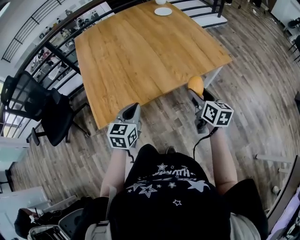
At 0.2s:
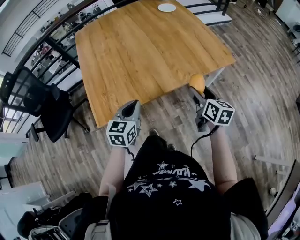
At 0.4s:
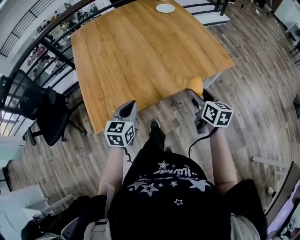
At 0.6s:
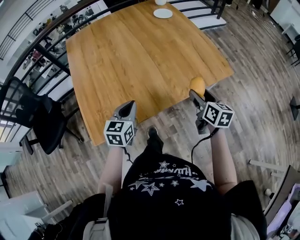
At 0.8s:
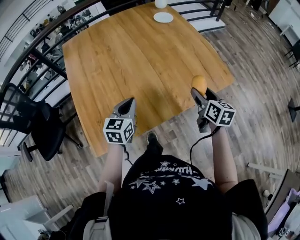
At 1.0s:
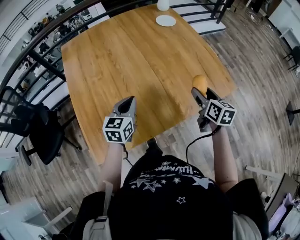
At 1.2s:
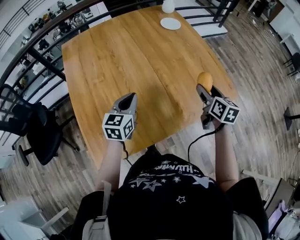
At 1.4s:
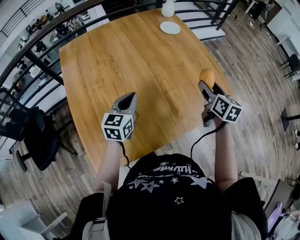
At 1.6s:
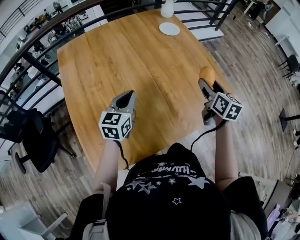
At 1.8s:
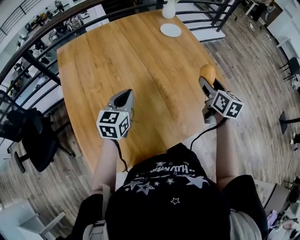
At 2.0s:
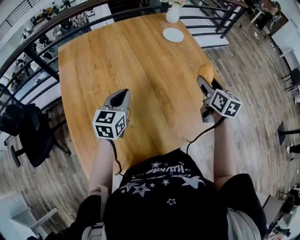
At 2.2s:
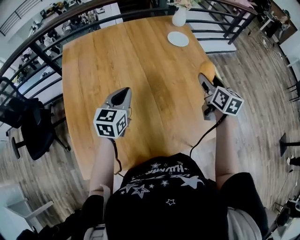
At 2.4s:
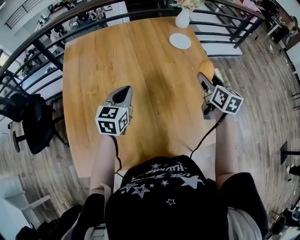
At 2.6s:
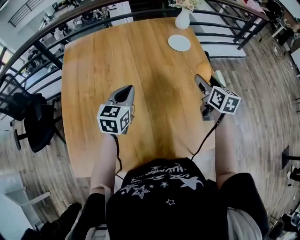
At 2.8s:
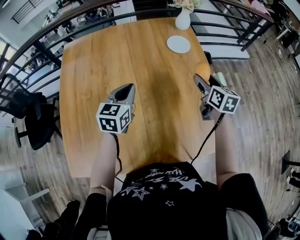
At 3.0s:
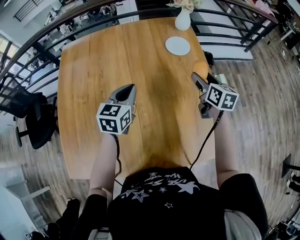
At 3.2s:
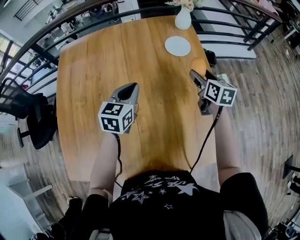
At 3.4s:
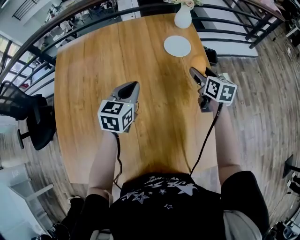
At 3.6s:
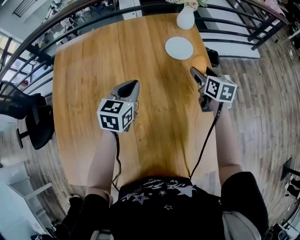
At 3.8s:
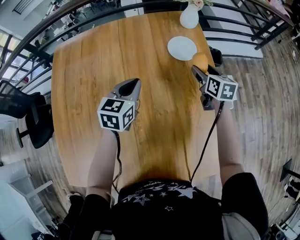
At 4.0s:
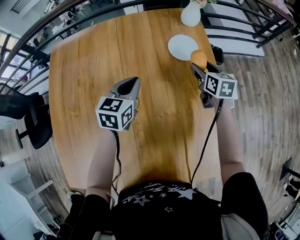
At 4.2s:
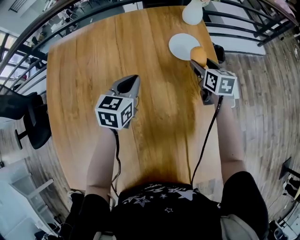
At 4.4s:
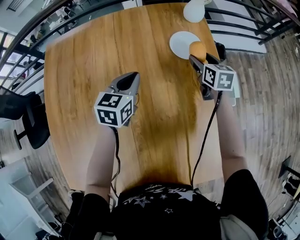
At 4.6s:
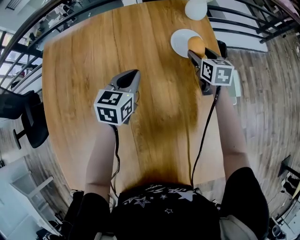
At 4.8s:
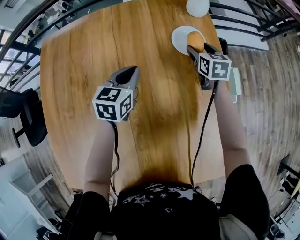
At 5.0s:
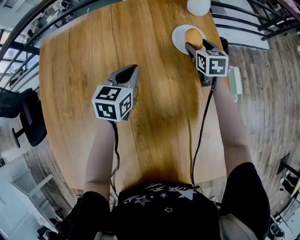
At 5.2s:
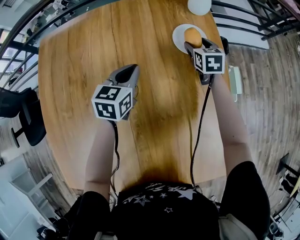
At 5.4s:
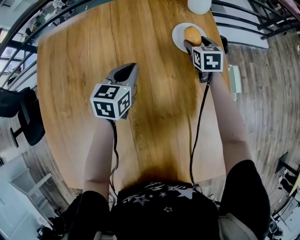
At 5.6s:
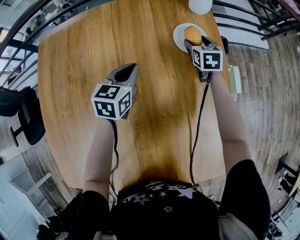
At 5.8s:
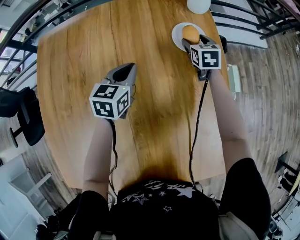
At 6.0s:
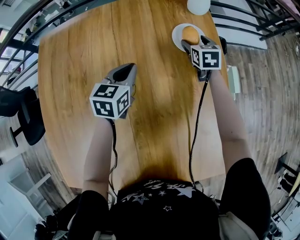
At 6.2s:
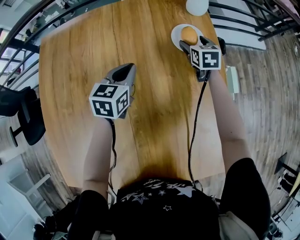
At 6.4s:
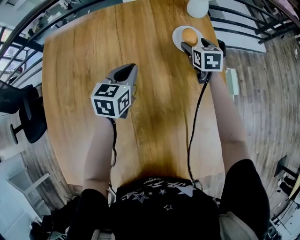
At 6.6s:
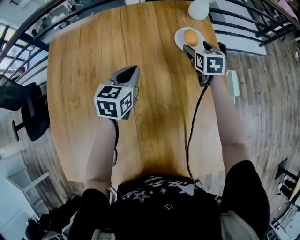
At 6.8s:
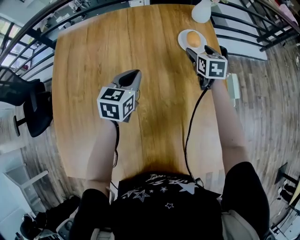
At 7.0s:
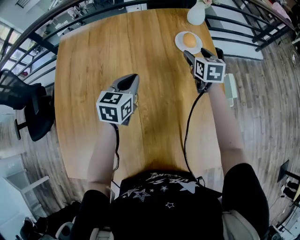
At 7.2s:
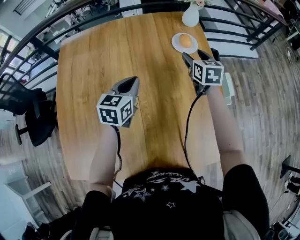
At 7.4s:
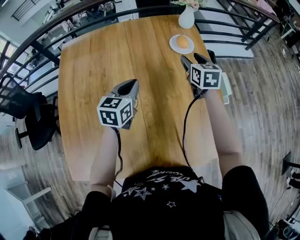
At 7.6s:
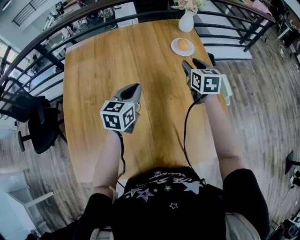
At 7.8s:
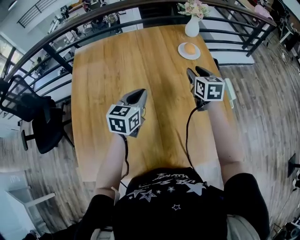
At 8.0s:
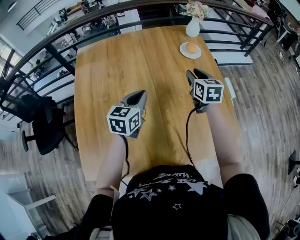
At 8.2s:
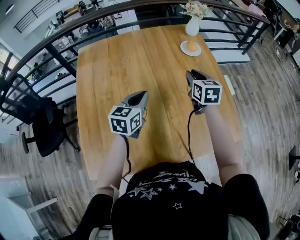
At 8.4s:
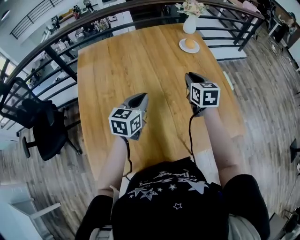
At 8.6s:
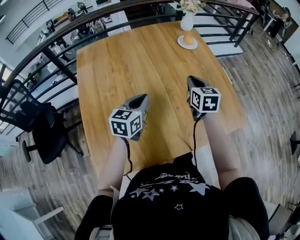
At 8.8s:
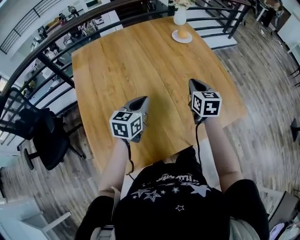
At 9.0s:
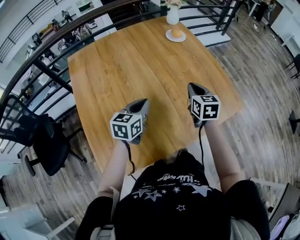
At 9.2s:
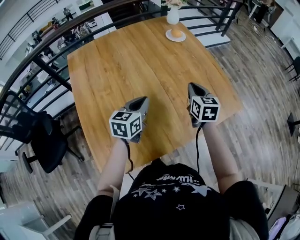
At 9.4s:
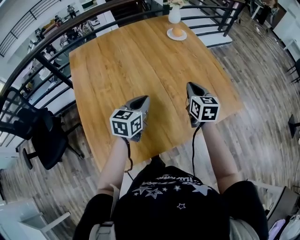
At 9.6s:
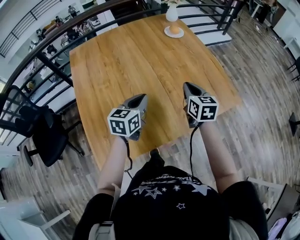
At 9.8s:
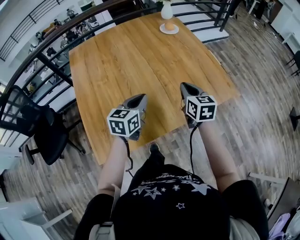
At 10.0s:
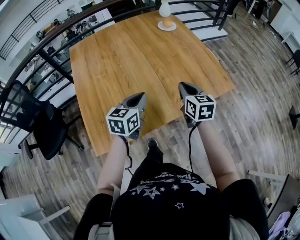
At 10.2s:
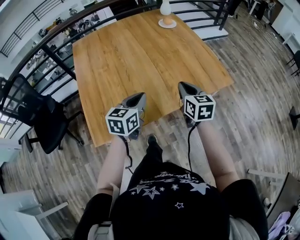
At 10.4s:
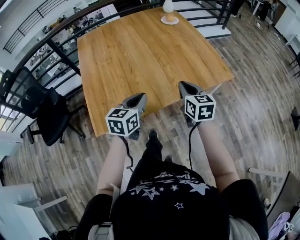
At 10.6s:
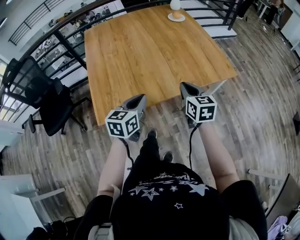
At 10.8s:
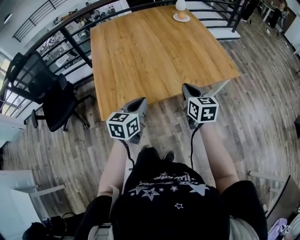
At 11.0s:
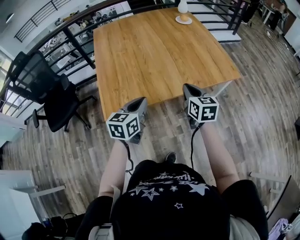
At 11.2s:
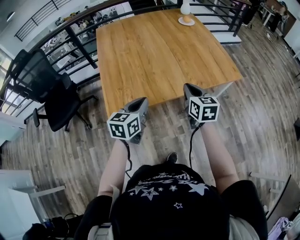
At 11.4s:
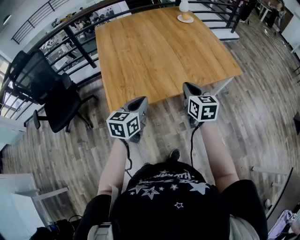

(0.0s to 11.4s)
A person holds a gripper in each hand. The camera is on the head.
0.0s - 1.4s: Both grippers travel together forward, roughly 30 cm.
1.4s - 2.8s: The right gripper moves forward, roughly 25 cm; the left gripper heads forward and to the right, covering about 20 cm.
2.8s - 4.2s: The right gripper is displaced forward and downward by approximately 25 cm. Meanwhile the left gripper moves forward, about 20 cm.
4.2s - 5.6s: The left gripper changes place by approximately 5 cm; the right gripper heads forward, covering some 10 cm.
5.6s - 7.2s: The two grippers go about 15 cm backward and upward.
7.2s - 8.6s: The left gripper moves backward and to the left, roughly 20 cm. The right gripper heads backward, covering some 25 cm, and closes.
8.6s - 10.0s: The right gripper shifts some 20 cm backward, while the left gripper moves backward and to the right, about 15 cm.
10.0s - 11.4s: Both grippers move backward and to the left, roughly 20 cm.

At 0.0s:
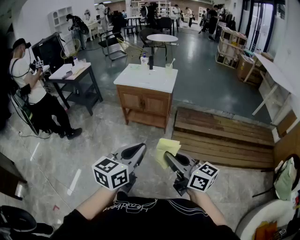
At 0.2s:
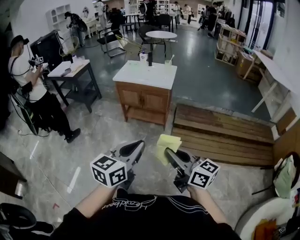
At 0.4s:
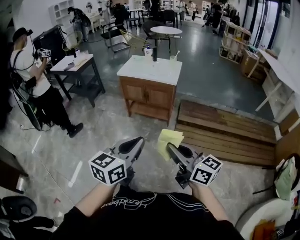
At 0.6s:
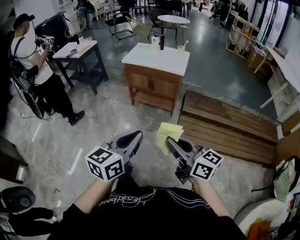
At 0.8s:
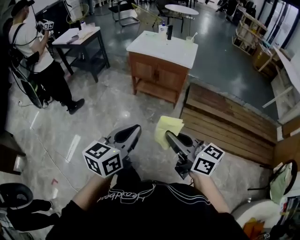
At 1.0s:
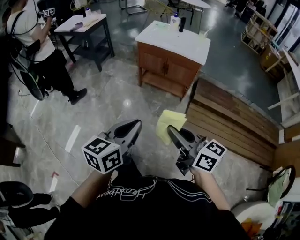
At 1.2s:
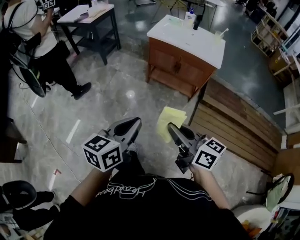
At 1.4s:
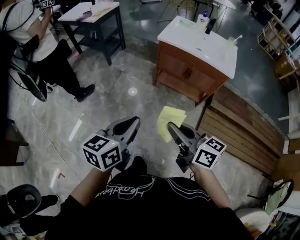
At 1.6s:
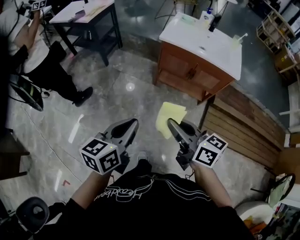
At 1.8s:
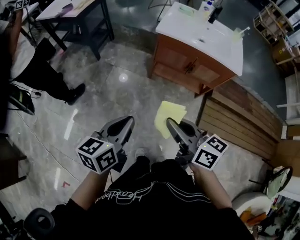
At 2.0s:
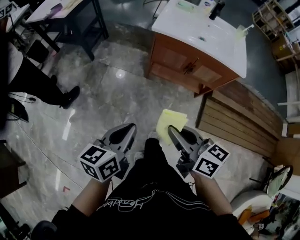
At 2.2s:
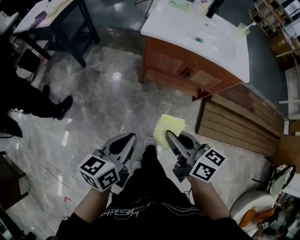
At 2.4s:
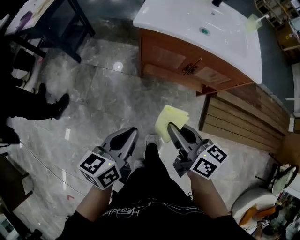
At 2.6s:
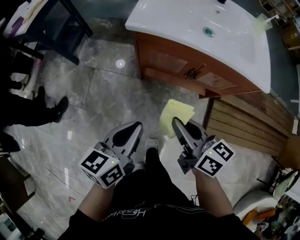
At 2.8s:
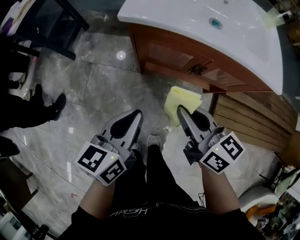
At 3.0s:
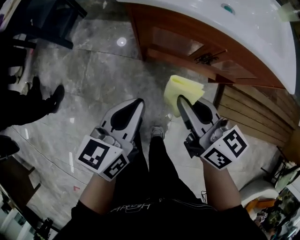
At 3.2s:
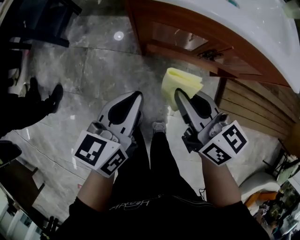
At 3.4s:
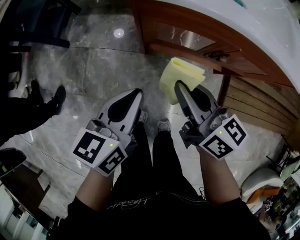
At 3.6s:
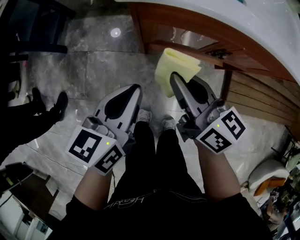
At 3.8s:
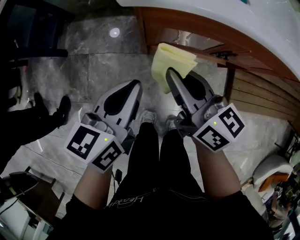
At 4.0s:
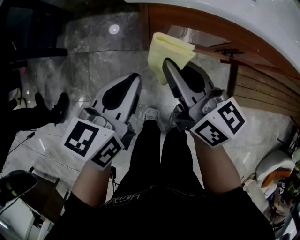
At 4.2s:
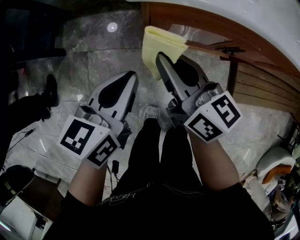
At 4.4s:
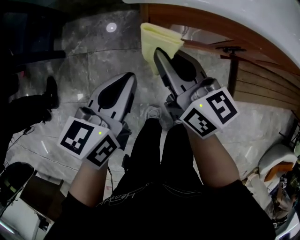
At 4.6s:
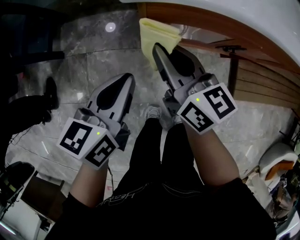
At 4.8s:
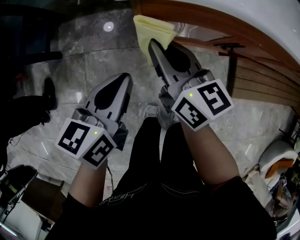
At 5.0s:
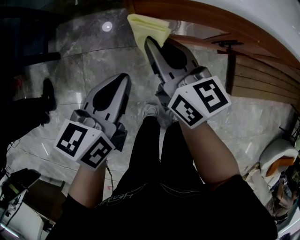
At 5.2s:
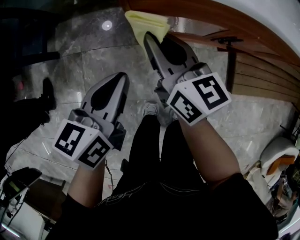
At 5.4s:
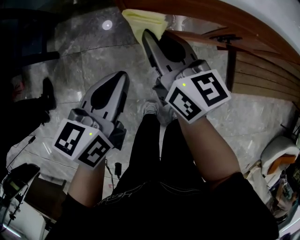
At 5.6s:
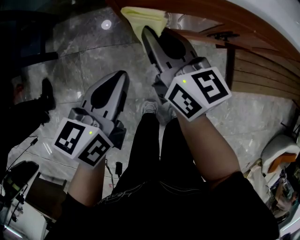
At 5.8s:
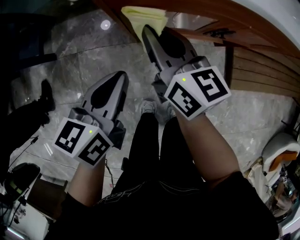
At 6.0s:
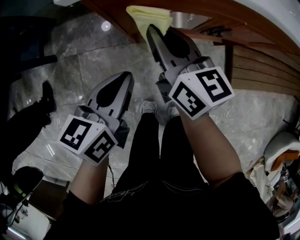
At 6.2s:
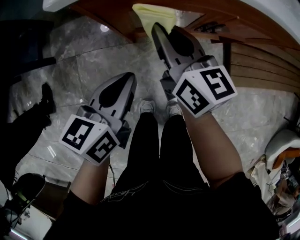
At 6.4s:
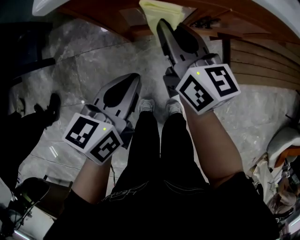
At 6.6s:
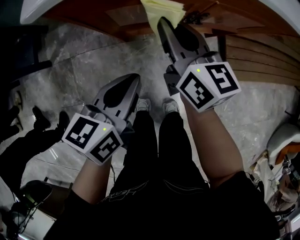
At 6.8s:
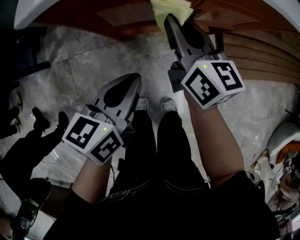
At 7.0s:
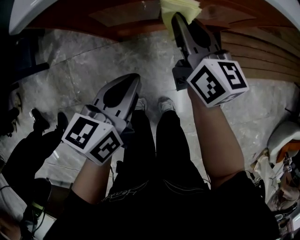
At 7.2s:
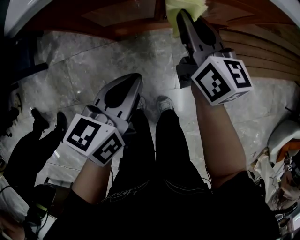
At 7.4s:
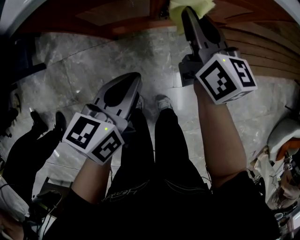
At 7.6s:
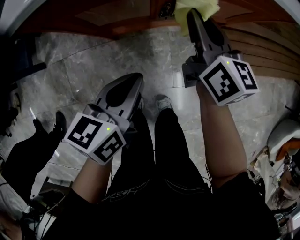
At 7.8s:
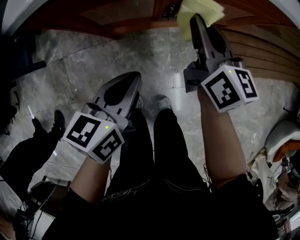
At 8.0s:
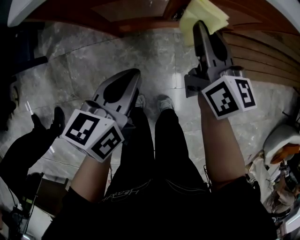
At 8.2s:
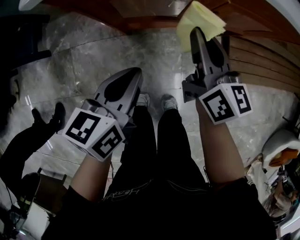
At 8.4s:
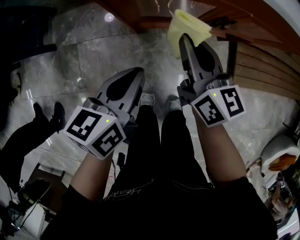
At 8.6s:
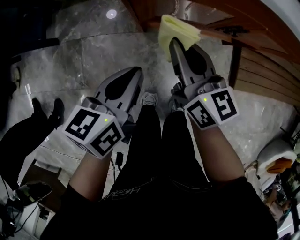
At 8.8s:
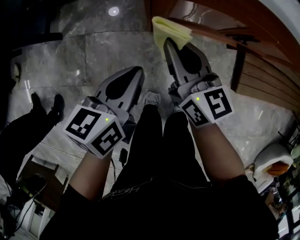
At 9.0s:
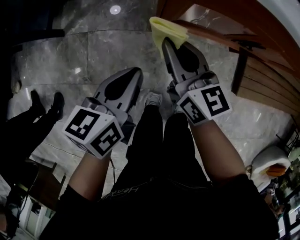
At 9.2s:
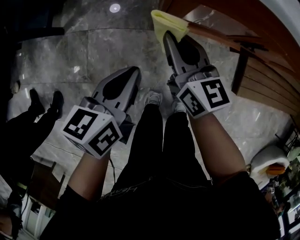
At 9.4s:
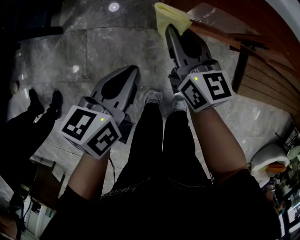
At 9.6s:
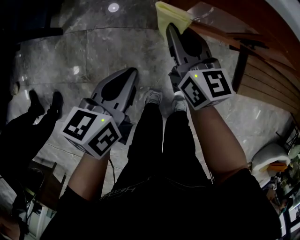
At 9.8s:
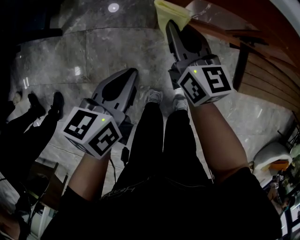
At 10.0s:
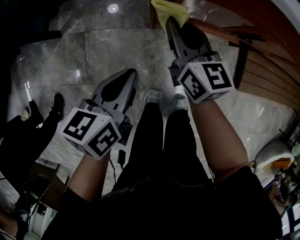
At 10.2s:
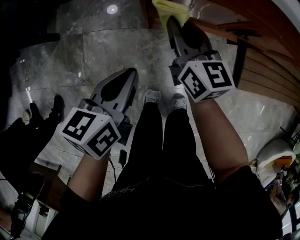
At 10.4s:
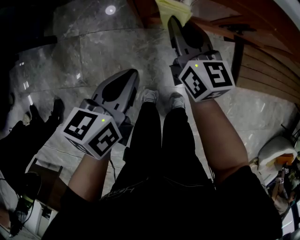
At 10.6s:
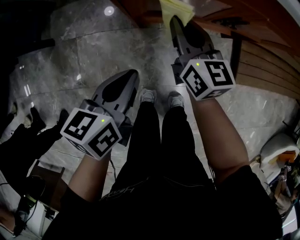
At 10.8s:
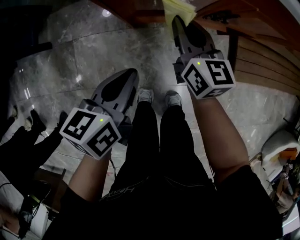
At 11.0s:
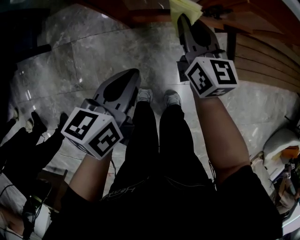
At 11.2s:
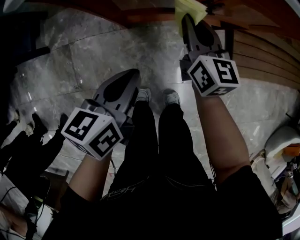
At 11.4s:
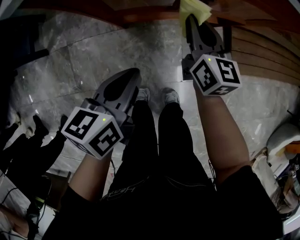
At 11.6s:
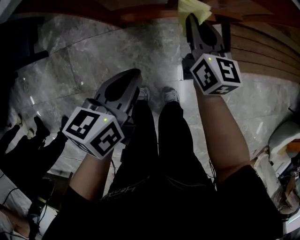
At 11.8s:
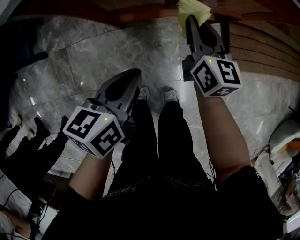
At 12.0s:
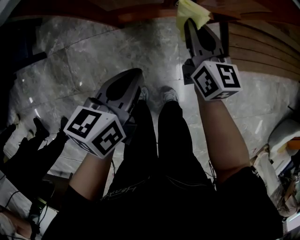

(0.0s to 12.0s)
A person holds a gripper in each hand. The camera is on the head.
0.0s - 1.6s: The two grippers travel together, forward and to the left, some 50 cm. The left gripper rotates approximately 20 degrees.
1.6s - 3.0s: Both grippers travel together forward and downward, some 40 cm.
3.0s - 4.4s: Both grippers travel together forward and to the left, some 15 cm.
4.4s - 6.0s: The left gripper heads to the right, covering approximately 5 cm, while the right gripper is displaced forward and to the right by approximately 10 cm.
6.0s - 7.6s: Both grippers move to the right, some 20 cm.
7.6s - 9.0s: Both grippers move to the left, about 25 cm. The right gripper swivels approximately 20 degrees.
9.0s - 10.4s: The right gripper is displaced to the right by about 5 cm.
10.4s - 12.0s: Both grippers travel together to the right, roughly 15 cm.
